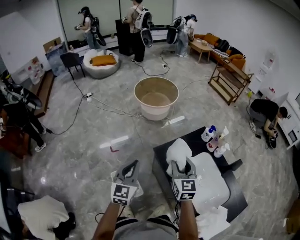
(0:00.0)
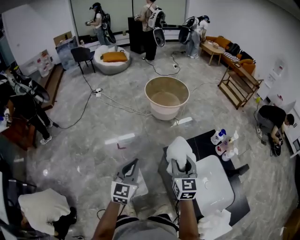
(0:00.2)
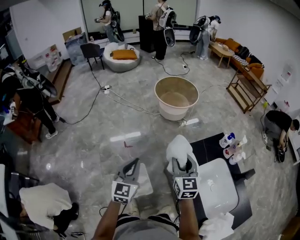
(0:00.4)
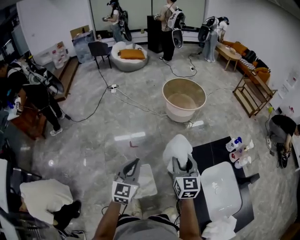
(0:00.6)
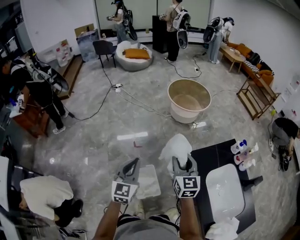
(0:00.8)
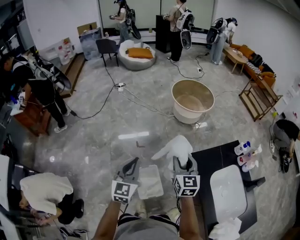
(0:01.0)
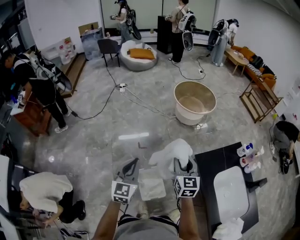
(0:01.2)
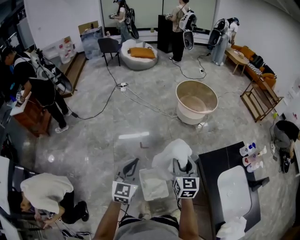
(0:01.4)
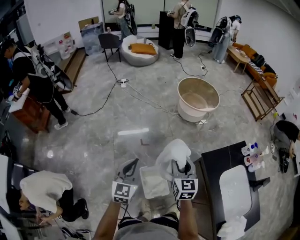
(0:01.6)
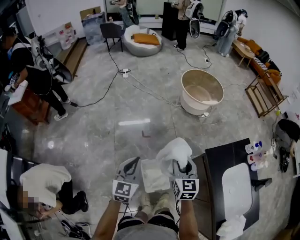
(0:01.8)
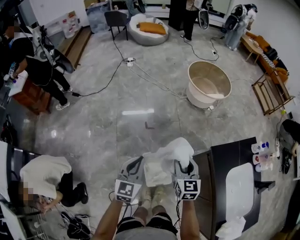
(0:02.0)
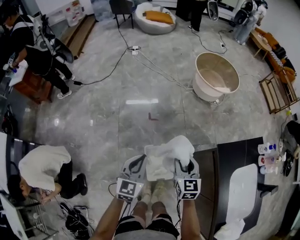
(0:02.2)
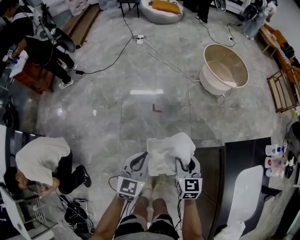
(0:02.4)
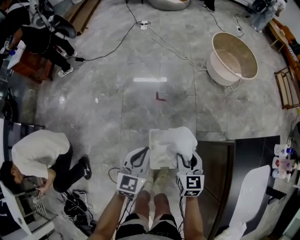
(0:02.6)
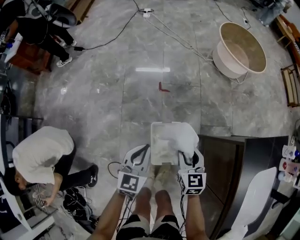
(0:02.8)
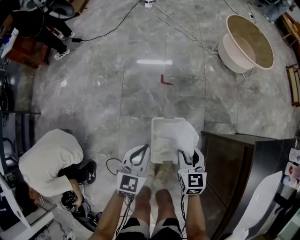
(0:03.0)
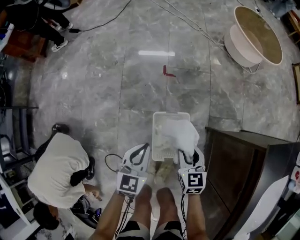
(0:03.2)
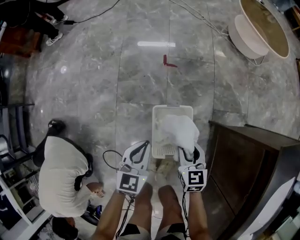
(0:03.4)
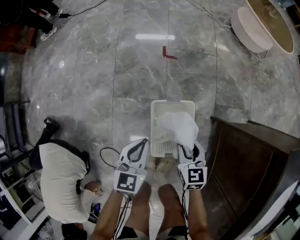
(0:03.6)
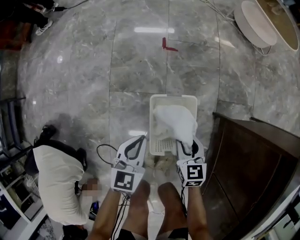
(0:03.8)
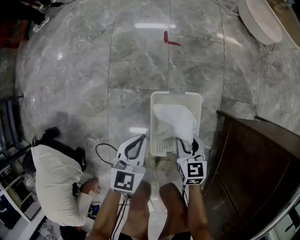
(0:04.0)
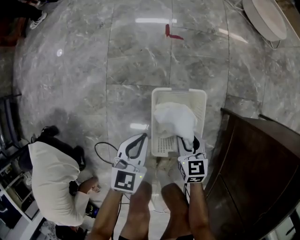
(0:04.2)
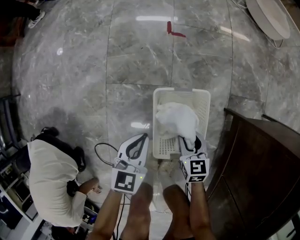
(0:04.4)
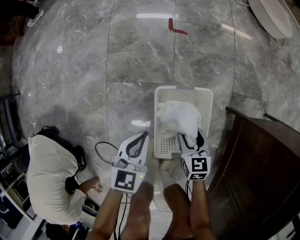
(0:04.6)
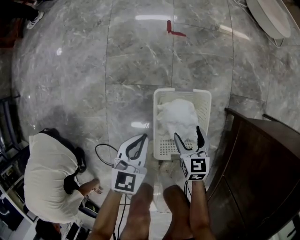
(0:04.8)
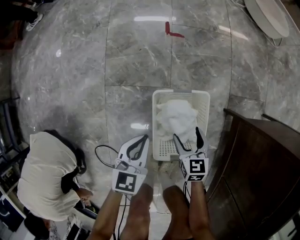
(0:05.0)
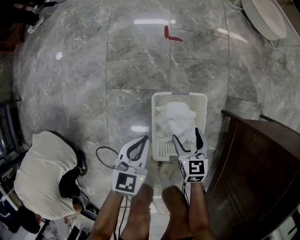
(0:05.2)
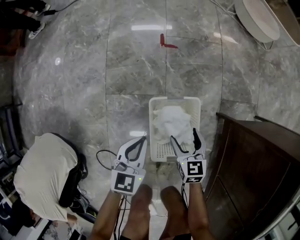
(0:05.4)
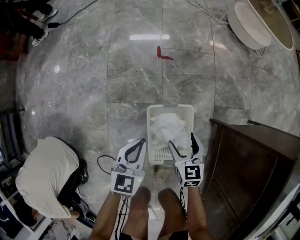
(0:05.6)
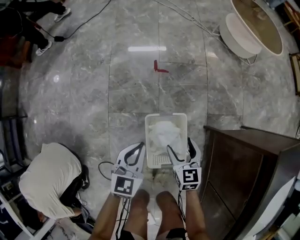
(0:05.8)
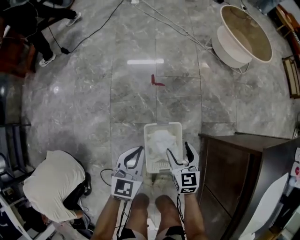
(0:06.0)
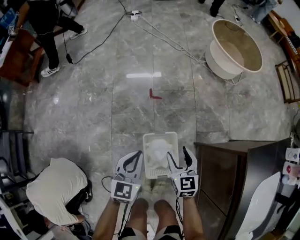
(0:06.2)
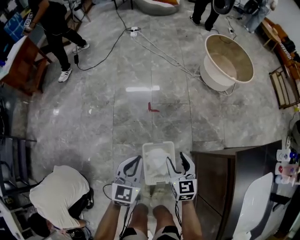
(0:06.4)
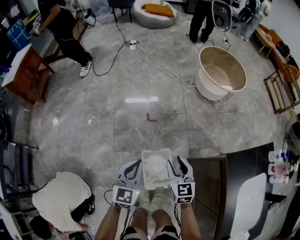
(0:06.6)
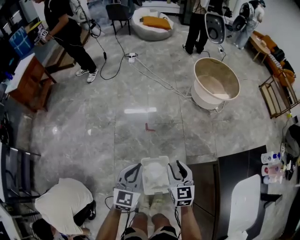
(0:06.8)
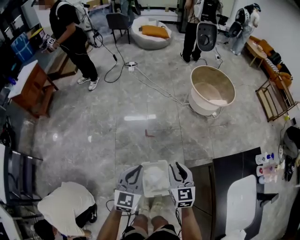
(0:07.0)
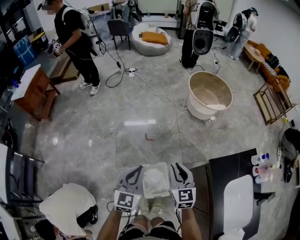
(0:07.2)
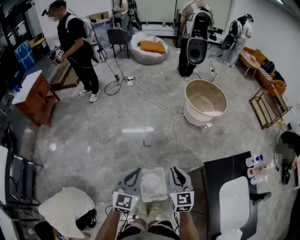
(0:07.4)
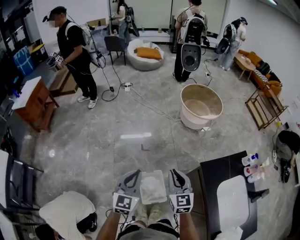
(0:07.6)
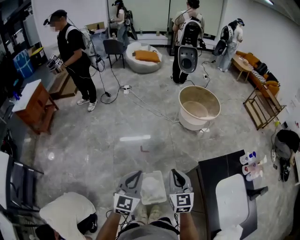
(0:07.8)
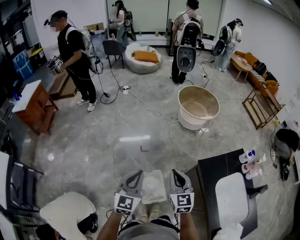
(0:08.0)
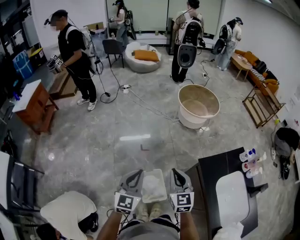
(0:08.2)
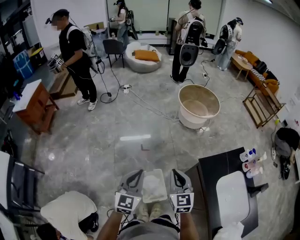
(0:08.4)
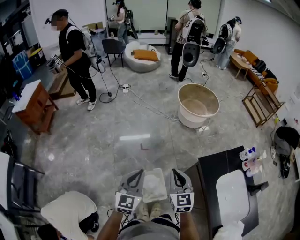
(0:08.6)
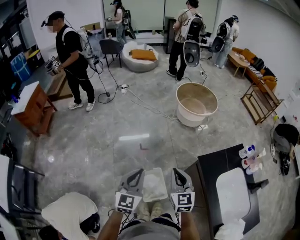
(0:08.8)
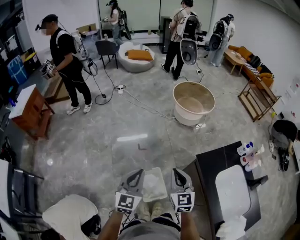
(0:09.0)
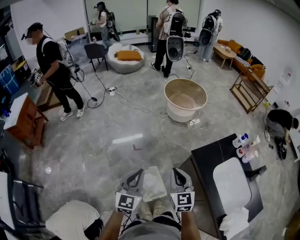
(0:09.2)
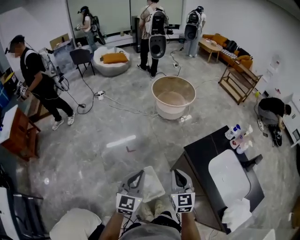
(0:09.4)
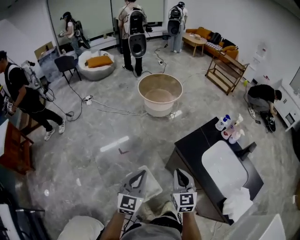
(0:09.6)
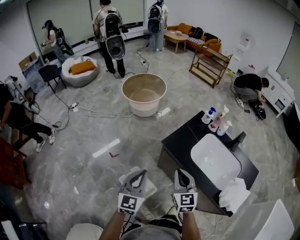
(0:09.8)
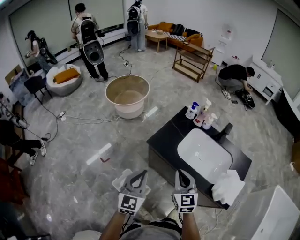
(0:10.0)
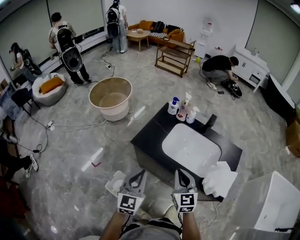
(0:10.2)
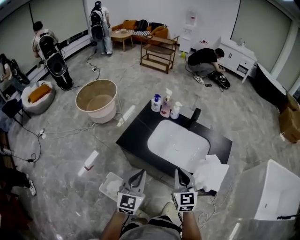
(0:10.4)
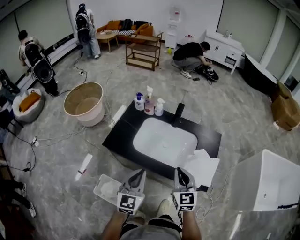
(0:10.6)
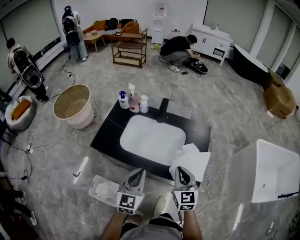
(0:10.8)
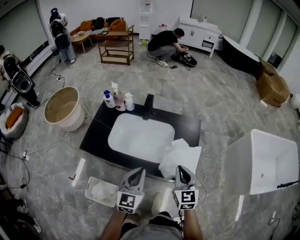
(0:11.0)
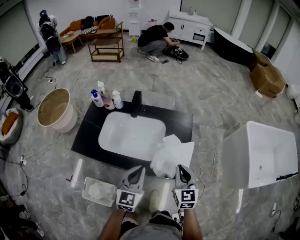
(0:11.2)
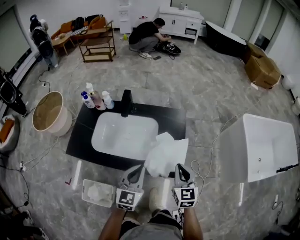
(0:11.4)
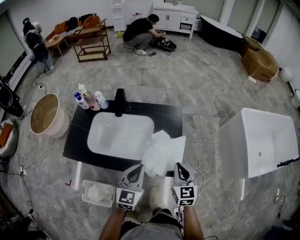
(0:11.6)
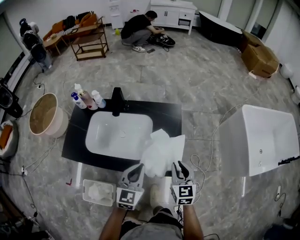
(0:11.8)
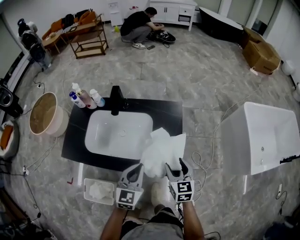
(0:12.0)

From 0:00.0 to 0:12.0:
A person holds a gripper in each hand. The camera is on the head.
From 0:00.0 to 0:01.6: The two grippers go some 35 cm to the left.
From 0:01.6 to 0:03.0: Both grippers travel together downward, some 40 cm. The left gripper swivels some 20 degrees. The right gripper rotates approximately 30 degrees.
From 0:03.0 to 0:04.4: The grippers both shift downward by some 35 cm.
From 0:04.4 to 0:06.0: Both grippers move upward, roughly 25 cm.
From 0:06.0 to 0:07.6: The two grippers go approximately 50 cm upward. The right gripper swivels roughly 20 degrees, and closes up, while the left gripper turns by some 20 degrees.
From 0:07.6 to 0:09.0: The right gripper ends up roughly 5 cm from where it was.
From 0:09.0 to 0:10.4: The right gripper shifts by some 40 cm, and swivels about 50 degrees; the left gripper ends up roughly 40 cm from where it was, and swivels about 50 degrees.
From 0:10.4 to 0:12.0: Both grippers move to the right, roughly 35 cm. The left gripper changes its angle by about 30 degrees. Meanwhile the right gripper rotates about 30 degrees, and opens.

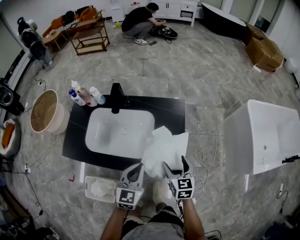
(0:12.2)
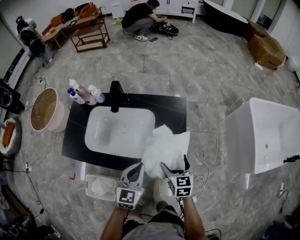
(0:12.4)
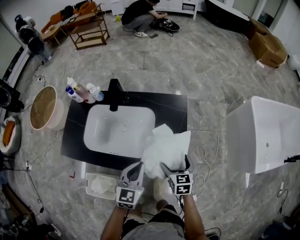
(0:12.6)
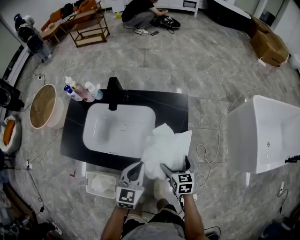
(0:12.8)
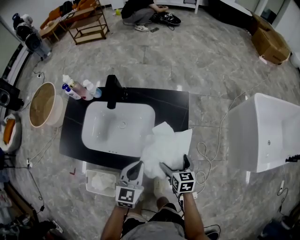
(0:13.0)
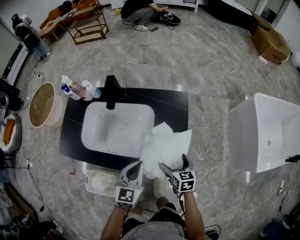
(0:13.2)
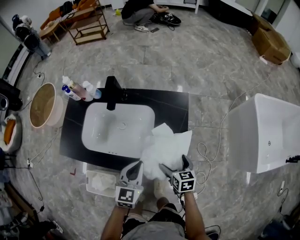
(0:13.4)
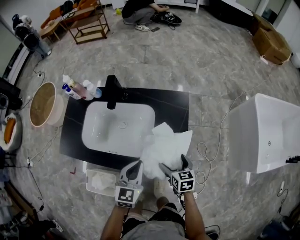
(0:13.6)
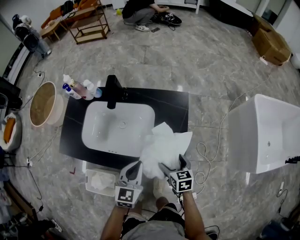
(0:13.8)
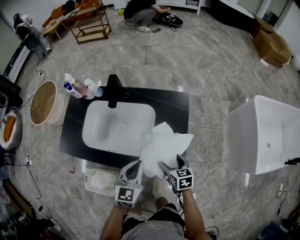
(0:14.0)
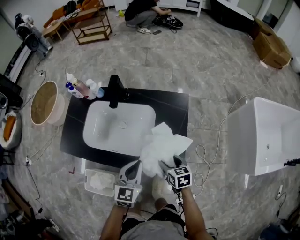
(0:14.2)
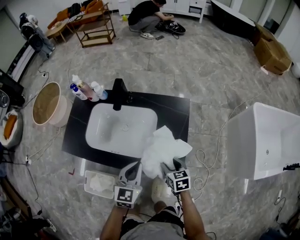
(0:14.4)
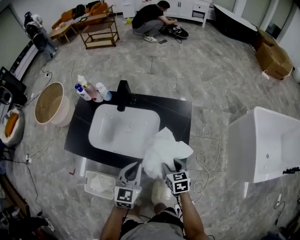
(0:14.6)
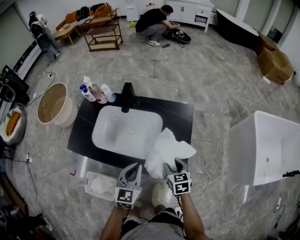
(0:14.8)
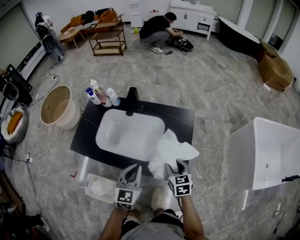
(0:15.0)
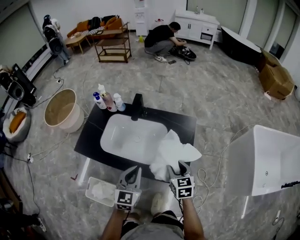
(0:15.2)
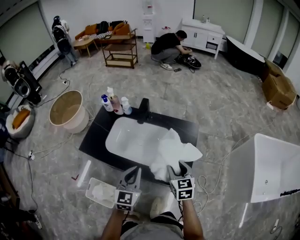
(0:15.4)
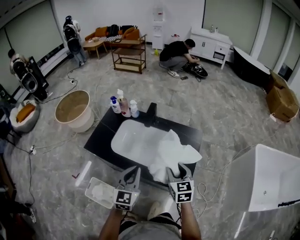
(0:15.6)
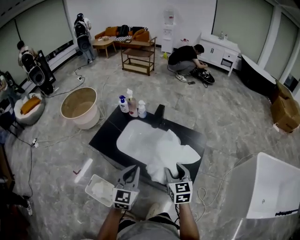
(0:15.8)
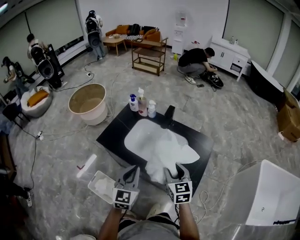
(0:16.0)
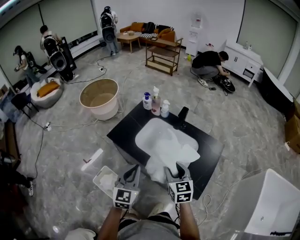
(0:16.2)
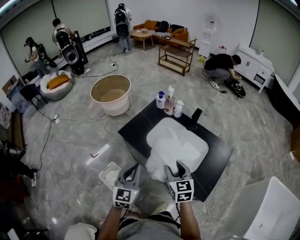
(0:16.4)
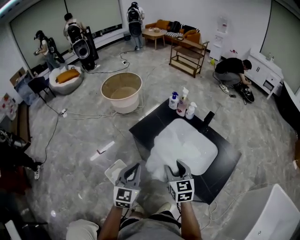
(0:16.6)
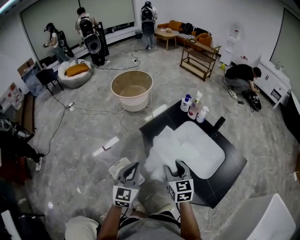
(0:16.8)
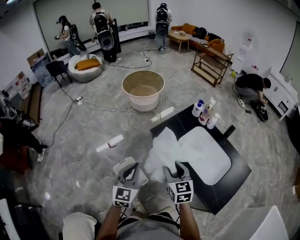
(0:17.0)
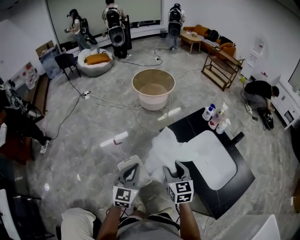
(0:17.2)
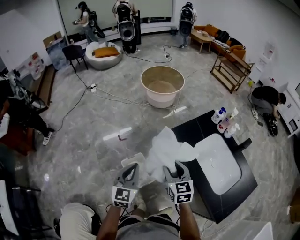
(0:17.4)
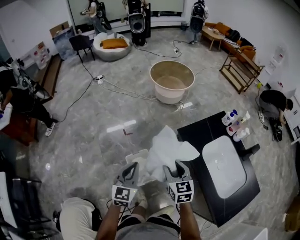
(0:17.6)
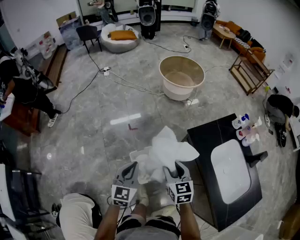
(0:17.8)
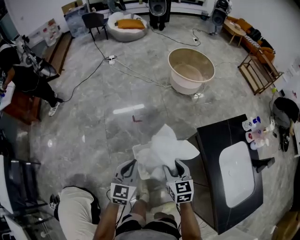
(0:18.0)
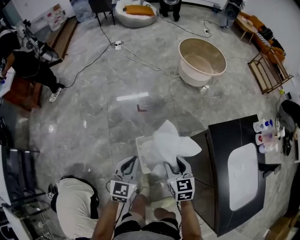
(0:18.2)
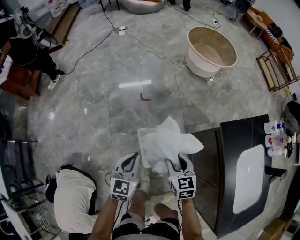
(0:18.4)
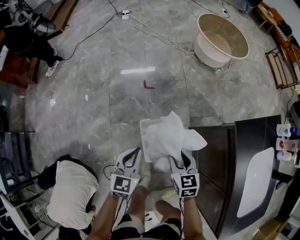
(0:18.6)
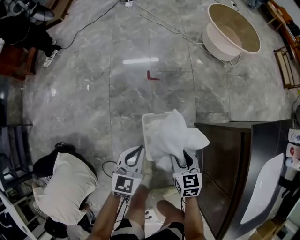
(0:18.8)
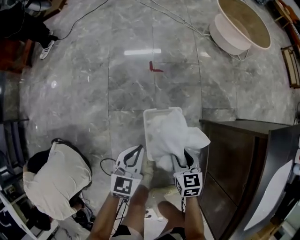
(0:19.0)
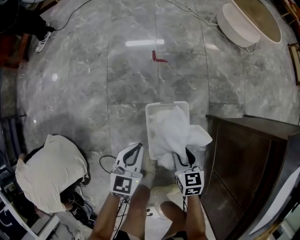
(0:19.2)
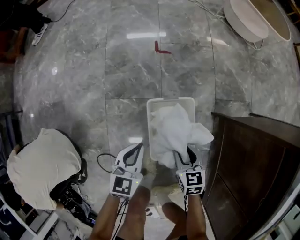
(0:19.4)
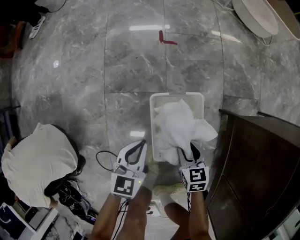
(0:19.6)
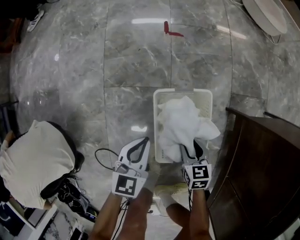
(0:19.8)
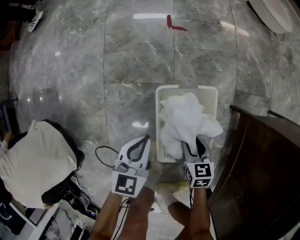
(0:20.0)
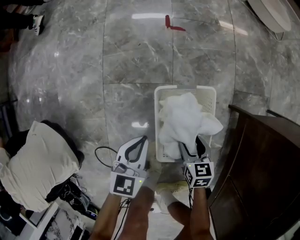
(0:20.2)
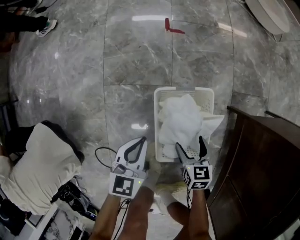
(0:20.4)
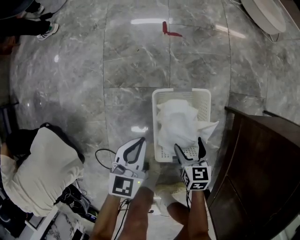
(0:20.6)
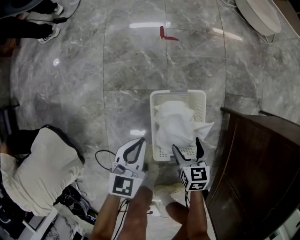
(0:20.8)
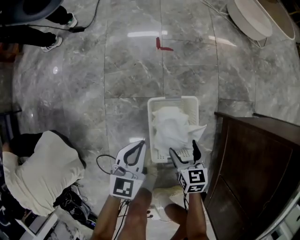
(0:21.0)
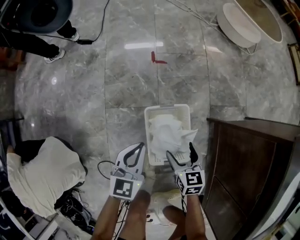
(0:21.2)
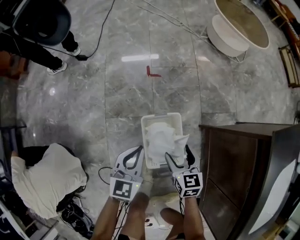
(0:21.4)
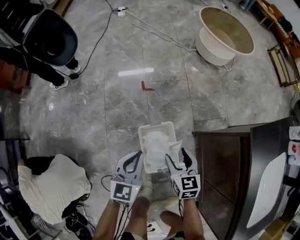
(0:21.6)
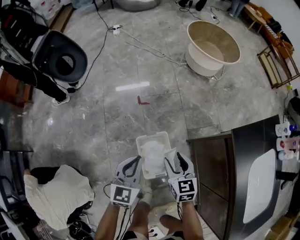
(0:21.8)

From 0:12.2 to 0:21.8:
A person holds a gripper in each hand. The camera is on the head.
From 0:12.2 to 0:13.8: The left gripper shifts by approximately 5 cm. Meanwhile the right gripper goes some 10 cm downward.
From 0:13.8 to 0:15.4: The left gripper is displaced upward and to the left by some 15 cm. Meanwhile the right gripper goes some 20 cm upward, rotates approximately 20 degrees, and closes.
From 0:15.4 to 0:17.0: The left gripper shifts by roughly 40 cm, and swivels roughly 40 degrees. The right gripper moves some 40 cm, and turns by some 40 degrees.
From 0:17.0 to 0:18.6: The two grippers go about 35 cm downward. The right gripper changes its angle by some 30 degrees, while the left gripper swivels approximately 30 degrees.
From 0:18.6 to 0:20.2: The two grippers go some 40 cm downward.
From 0:20.2 to 0:21.8: The grippers both shift upward by approximately 40 cm. The left gripper turns by roughly 30 degrees. The right gripper swivels roughly 30 degrees.

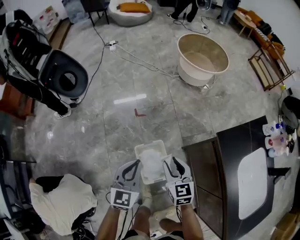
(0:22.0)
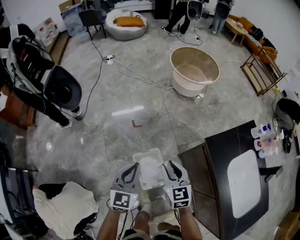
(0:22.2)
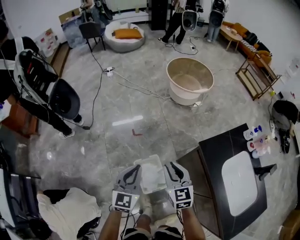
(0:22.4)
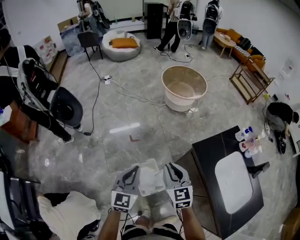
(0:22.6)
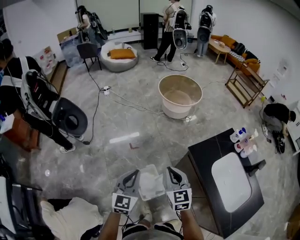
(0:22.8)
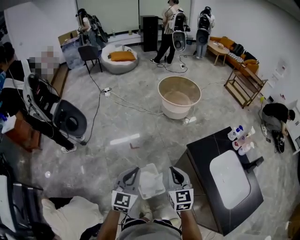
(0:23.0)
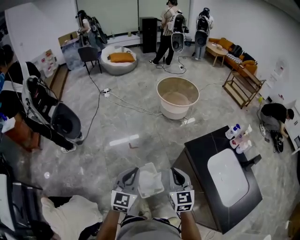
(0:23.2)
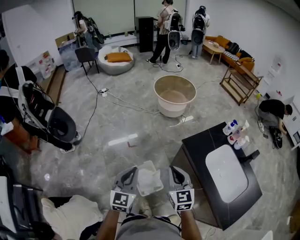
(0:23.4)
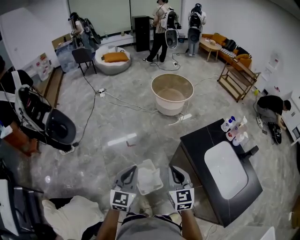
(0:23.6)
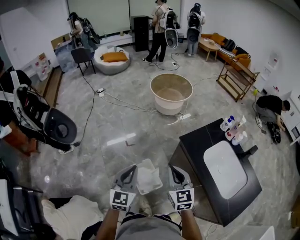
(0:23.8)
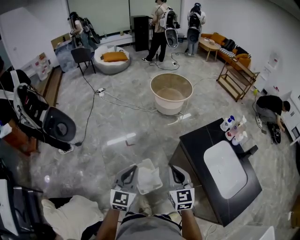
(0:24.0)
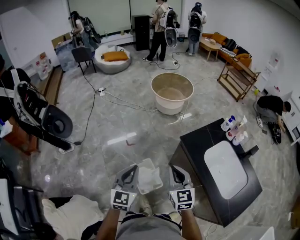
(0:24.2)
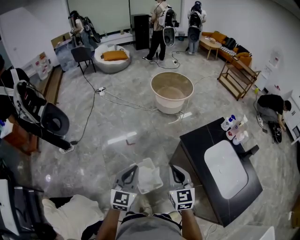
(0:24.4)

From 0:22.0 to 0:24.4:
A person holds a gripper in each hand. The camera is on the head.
From 0:22.0 to 0:23.2: The two grippers go approximately 30 cm upward and backward.
From 0:23.2 to 0:24.4: The grippers make only small movements.
